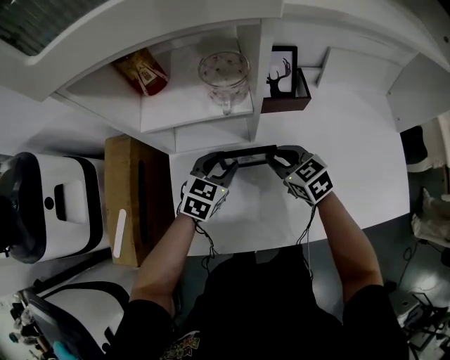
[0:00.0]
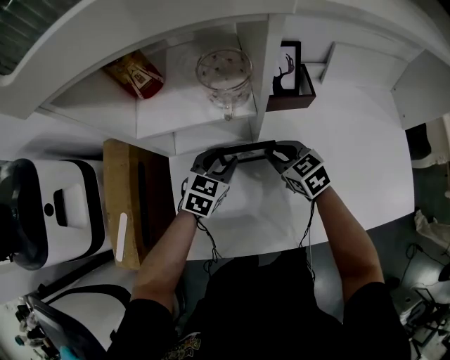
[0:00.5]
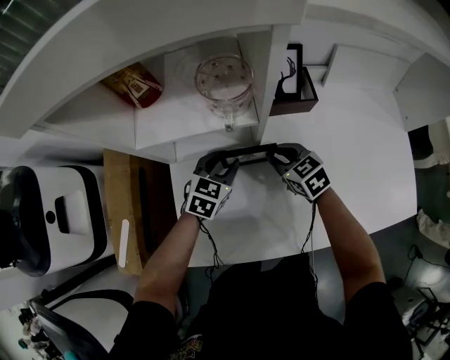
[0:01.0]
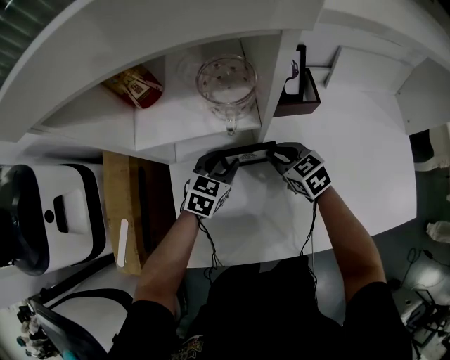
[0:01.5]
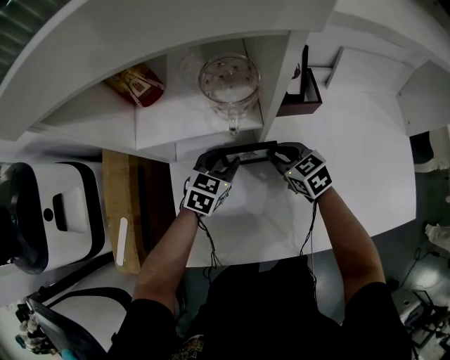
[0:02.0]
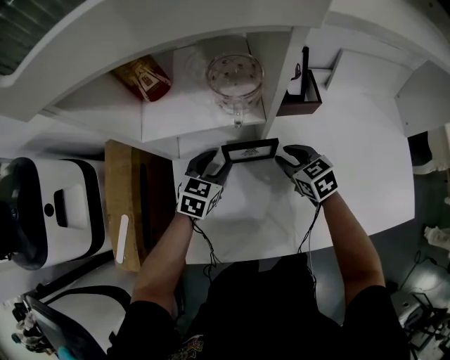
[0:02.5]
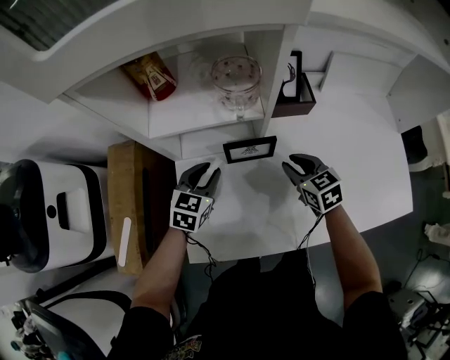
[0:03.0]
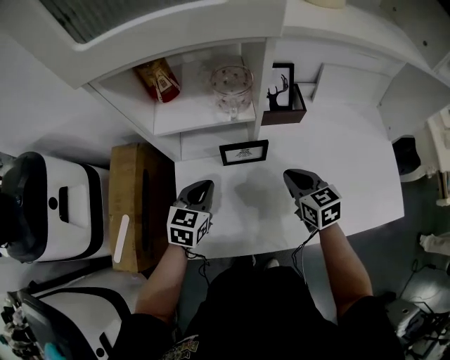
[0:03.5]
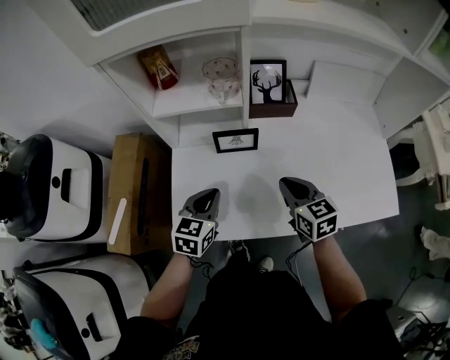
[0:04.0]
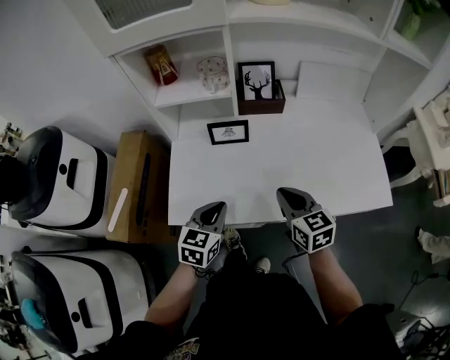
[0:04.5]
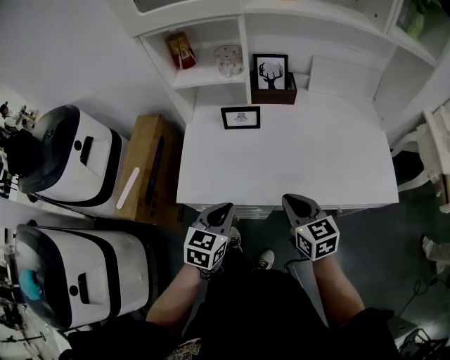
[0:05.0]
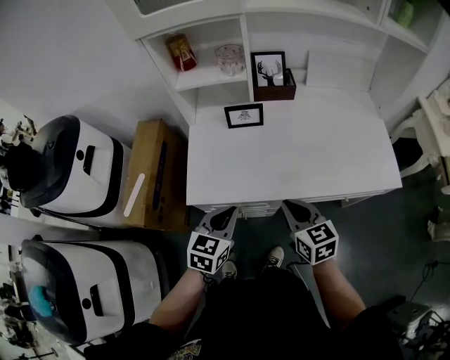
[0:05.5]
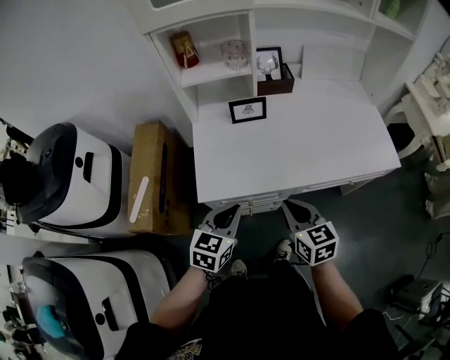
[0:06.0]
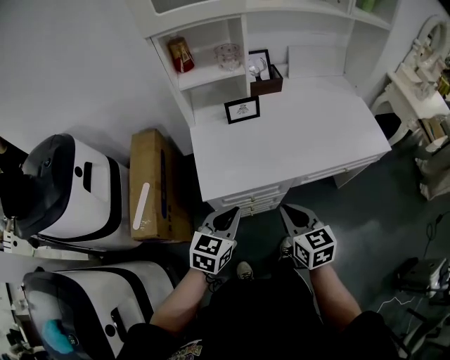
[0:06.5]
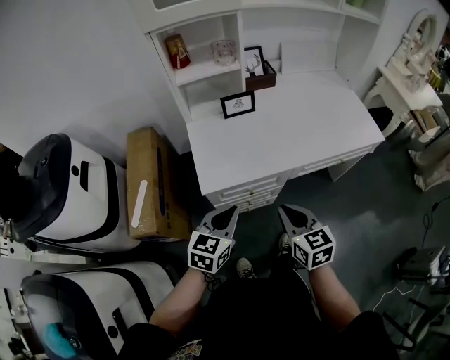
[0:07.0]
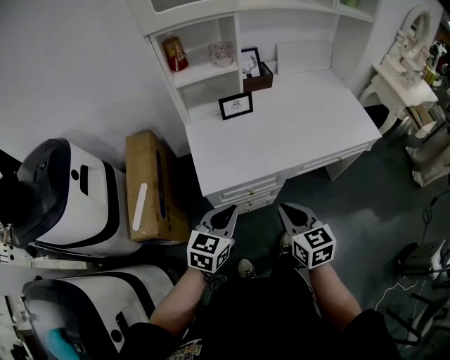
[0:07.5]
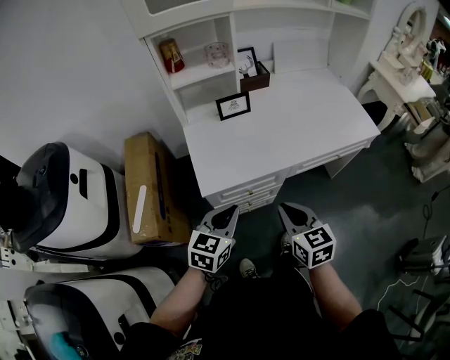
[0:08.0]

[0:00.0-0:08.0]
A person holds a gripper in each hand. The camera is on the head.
0:00.0 to 0:02.0: The right gripper moves some 5 cm, while the left gripper moves some 5 cm.
0:02.0 to 0:04.0: The grippers both shift backward and upward by approximately 20 cm. The left gripper closes.
0:04.0 to 0:06.0: The two grippers go some 25 cm backward.
0:06.0 to 0:08.0: The left gripper travels backward by about 5 cm, while the right gripper travels backward by some 10 cm.

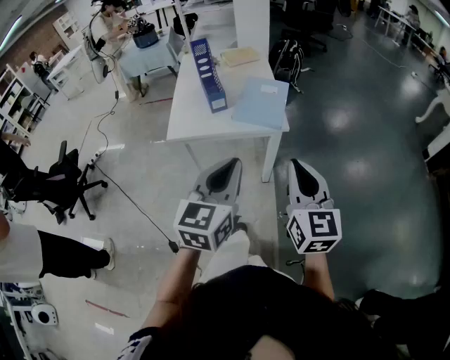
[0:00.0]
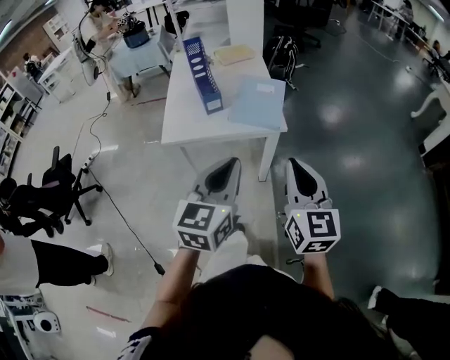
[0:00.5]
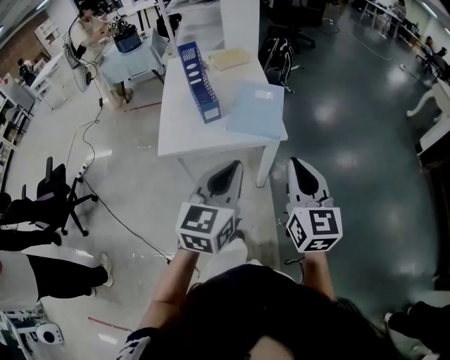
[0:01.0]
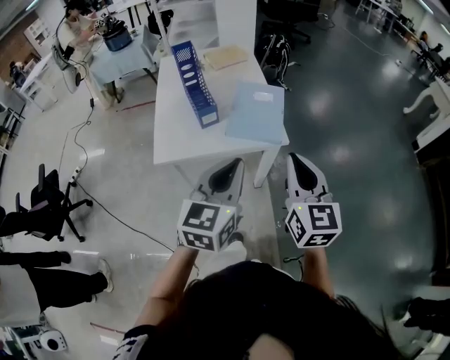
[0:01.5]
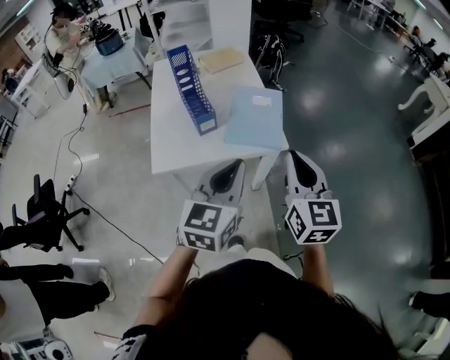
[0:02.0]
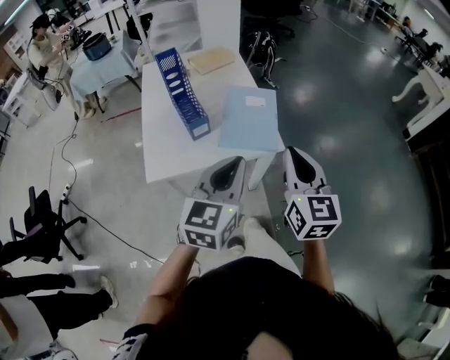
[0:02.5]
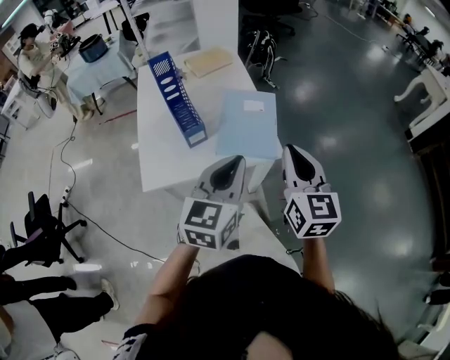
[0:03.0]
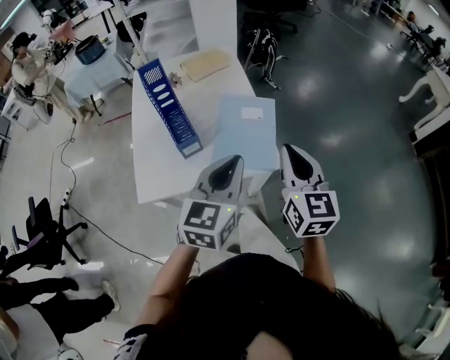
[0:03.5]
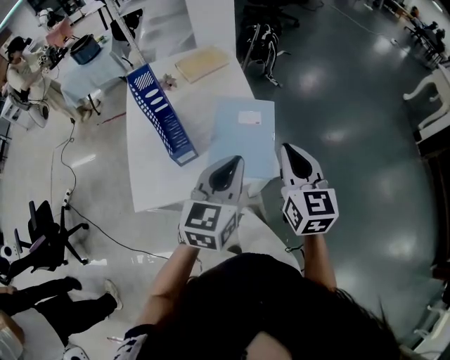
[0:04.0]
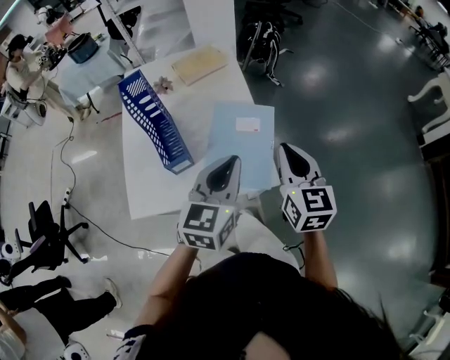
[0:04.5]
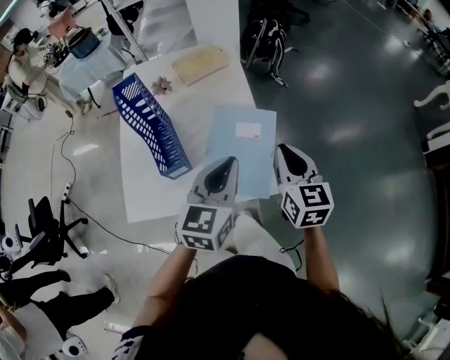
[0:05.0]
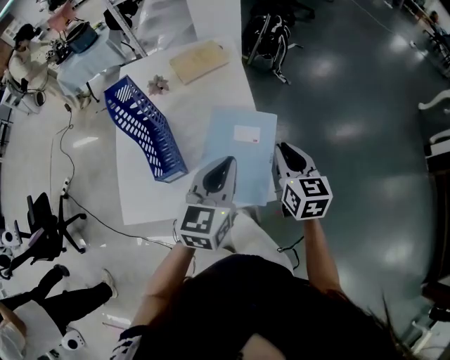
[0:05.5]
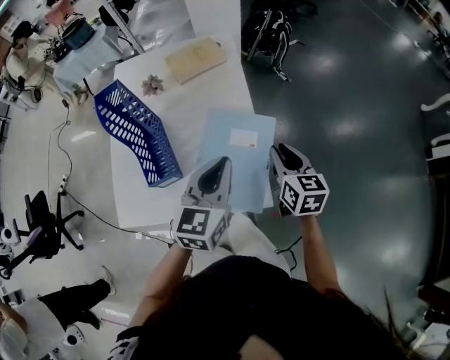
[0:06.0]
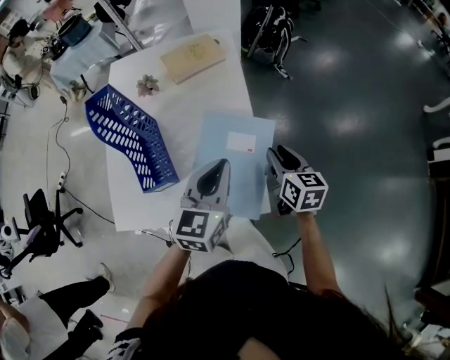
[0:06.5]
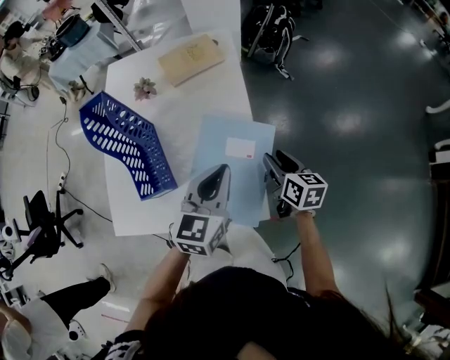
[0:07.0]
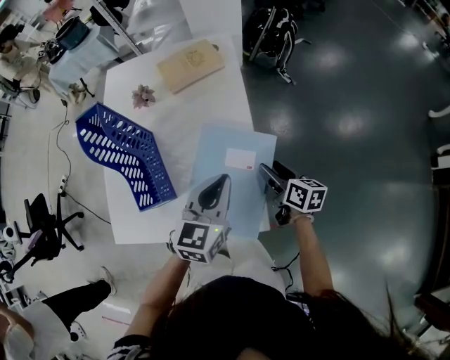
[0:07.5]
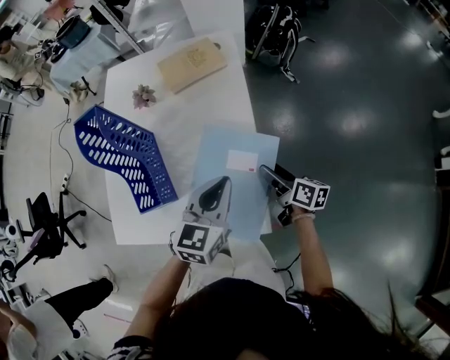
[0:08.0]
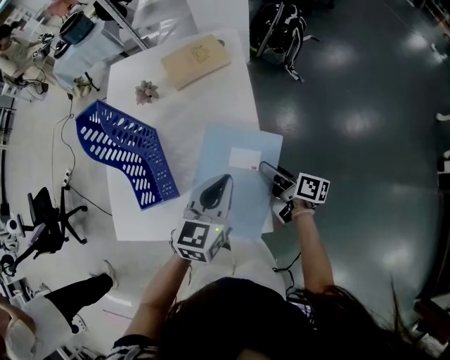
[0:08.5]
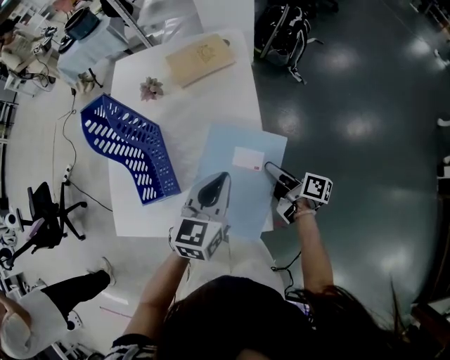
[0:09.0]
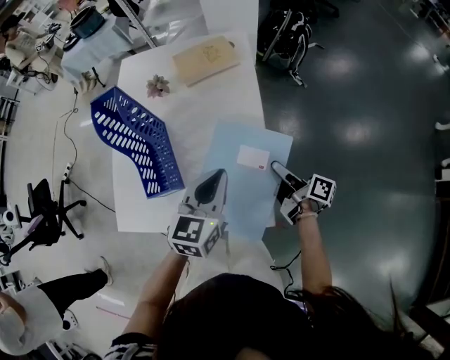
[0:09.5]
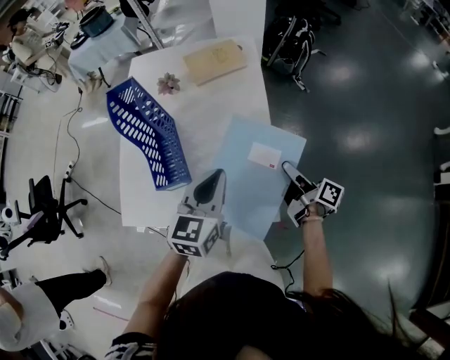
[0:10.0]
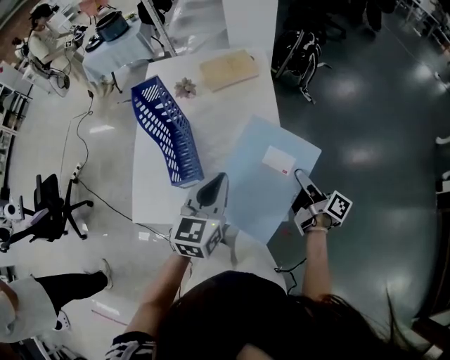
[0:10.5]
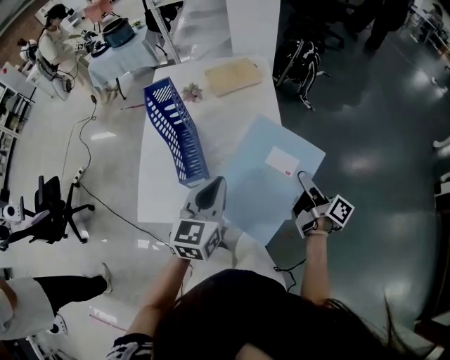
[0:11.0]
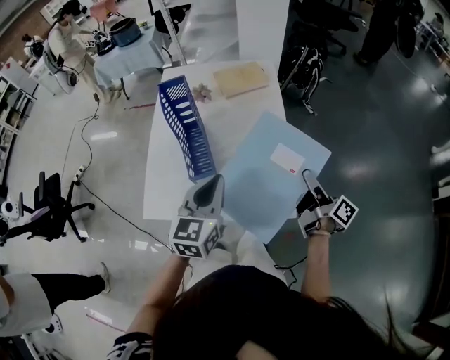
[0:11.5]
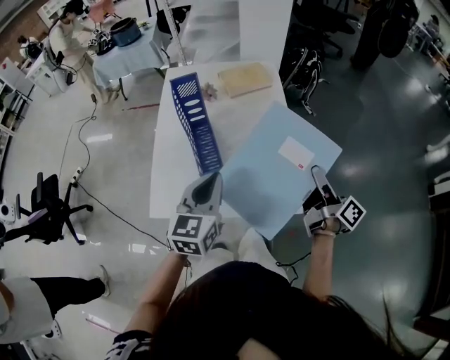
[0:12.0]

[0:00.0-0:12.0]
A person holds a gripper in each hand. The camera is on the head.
0:00.0 to 0:02.0: The right gripper heads forward and to the left, covering about 20 cm, while the left gripper travels forward by about 15 cm.
0:02.0 to 0:04.0: The two grippers go about 20 cm forward.
0:04.0 to 0:06.0: Both grippers travel together forward and downward, some 20 cm. The right gripper changes its angle by approximately 20 degrees.
0:06.0 to 0:08.0: The left gripper moves downward, roughly 5 cm, while the right gripper travels downward by roughly 15 cm, rotates approximately 40 degrees, and opens up.
0:08.0 to 0:10.0: The left gripper travels to the left by roughly 5 cm, while the right gripper ends up about 5 cm from where it was, changes its angle by some 20 degrees, and closes up.
0:10.0 to 0:12.0: The right gripper is displaced upward and backward by roughly 15 cm, and changes its angle by some 20 degrees. Meanwhile the left gripper travels to the left, backward and upward by some 15 cm.

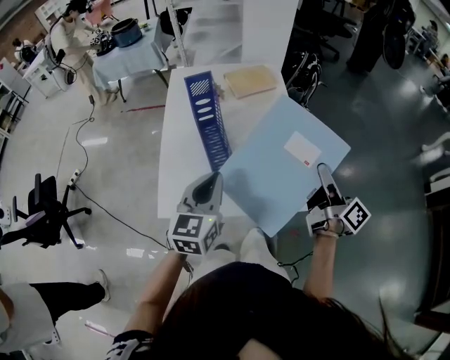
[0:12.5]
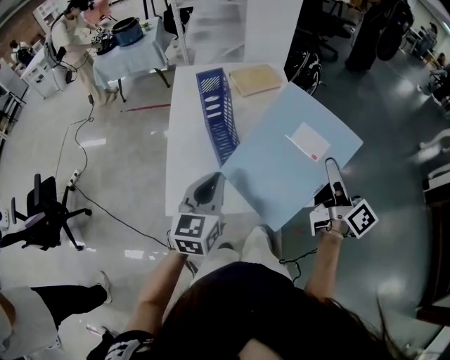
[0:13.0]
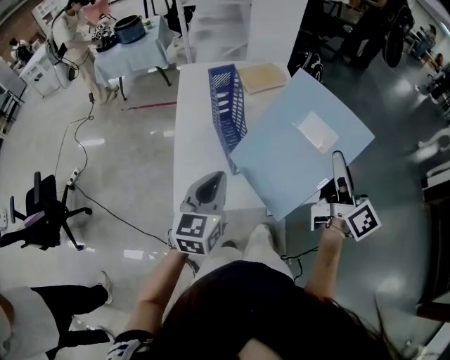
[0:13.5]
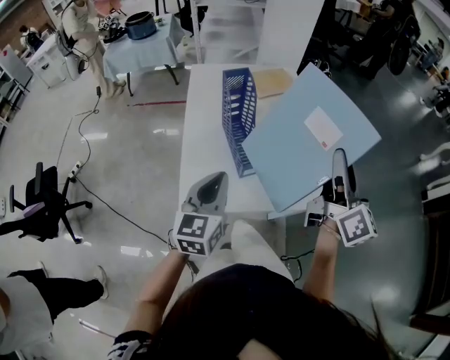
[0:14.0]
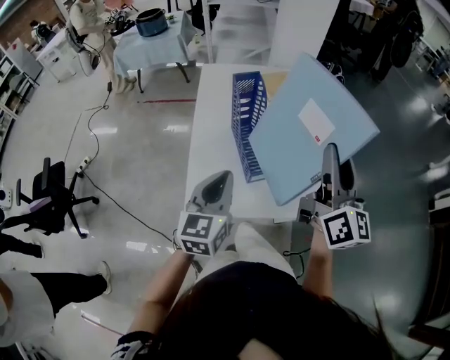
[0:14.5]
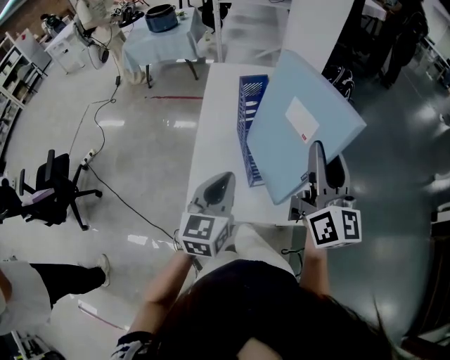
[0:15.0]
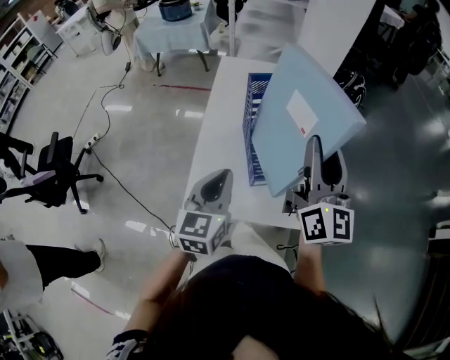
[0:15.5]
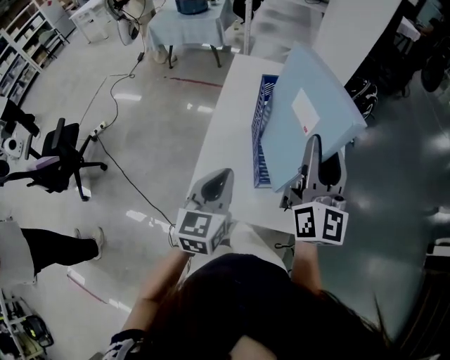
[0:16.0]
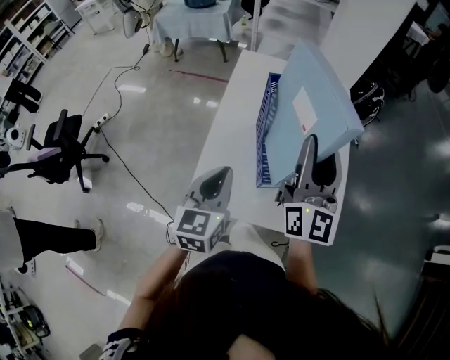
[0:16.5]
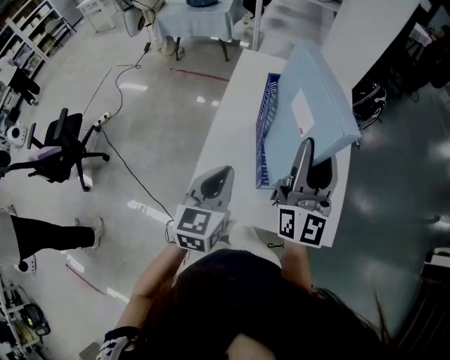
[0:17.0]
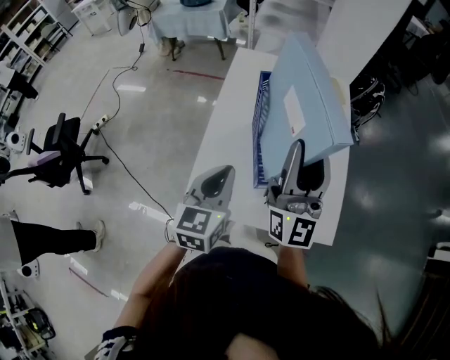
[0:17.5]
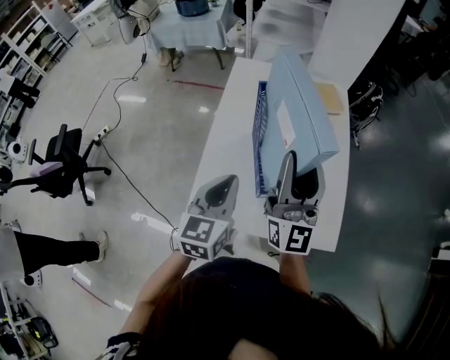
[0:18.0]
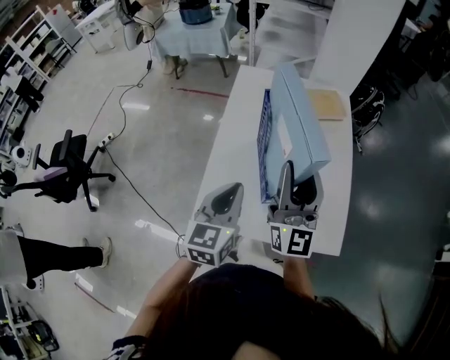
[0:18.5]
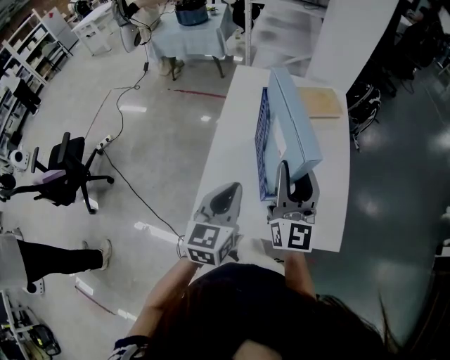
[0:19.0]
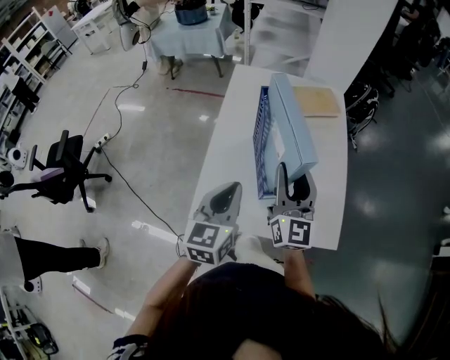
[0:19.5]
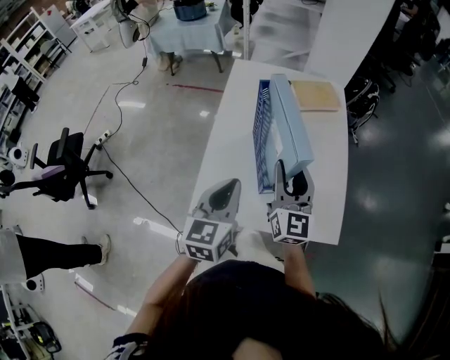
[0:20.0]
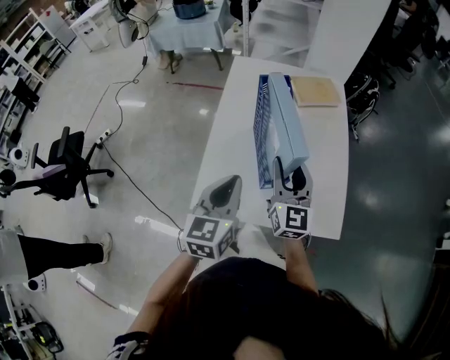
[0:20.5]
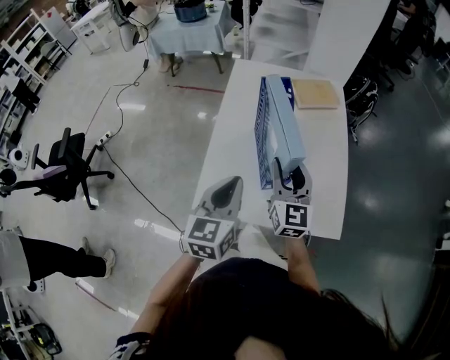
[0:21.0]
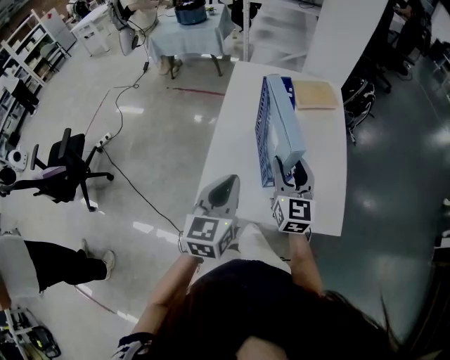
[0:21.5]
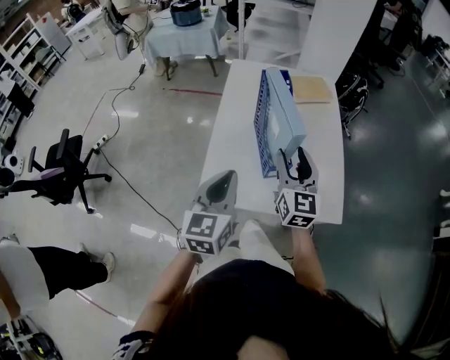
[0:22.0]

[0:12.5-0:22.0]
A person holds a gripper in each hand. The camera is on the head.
0:12.5 to 0:14.5: The left gripper shifts some 10 cm to the left. The right gripper moves to the left and upward, approximately 20 cm, and rotates around the line of its fingers by approximately 40 degrees, counterclockwise from behind.
0:14.5 to 0:16.5: The right gripper moves forward and to the left, some 10 cm.
0:16.5 to 0:18.0: The grippers stay close to where they were, moving slightly.
0:18.0 to 0:20.0: The right gripper goes roughly 10 cm downward, and swivels roughly 20 degrees.
0:20.0 to 0:22.0: The left gripper heads backward, covering some 5 cm.
